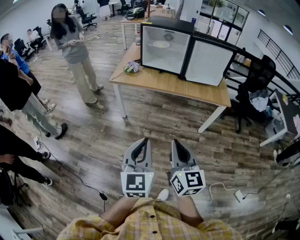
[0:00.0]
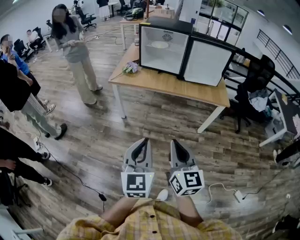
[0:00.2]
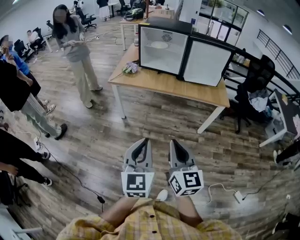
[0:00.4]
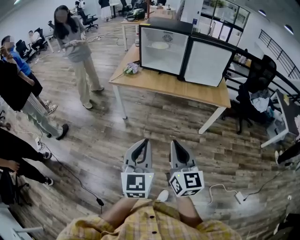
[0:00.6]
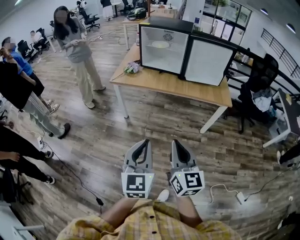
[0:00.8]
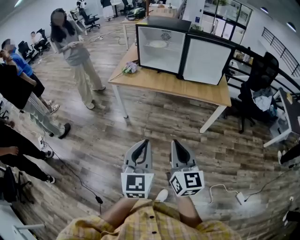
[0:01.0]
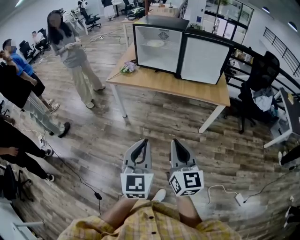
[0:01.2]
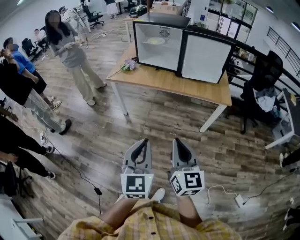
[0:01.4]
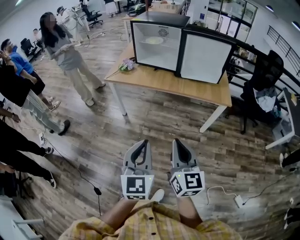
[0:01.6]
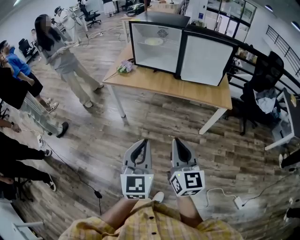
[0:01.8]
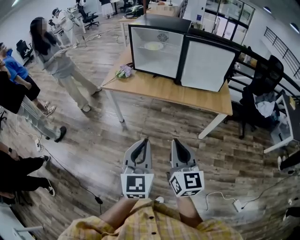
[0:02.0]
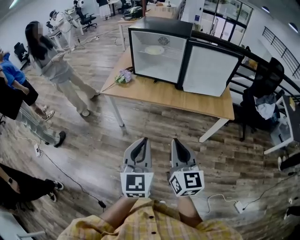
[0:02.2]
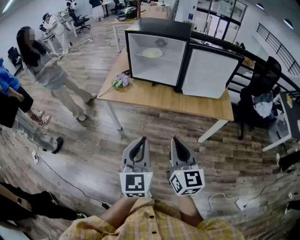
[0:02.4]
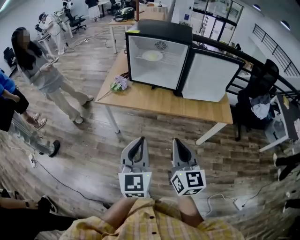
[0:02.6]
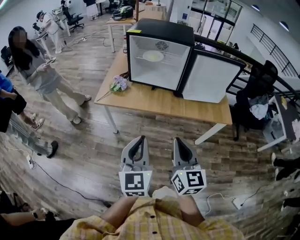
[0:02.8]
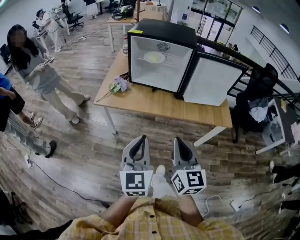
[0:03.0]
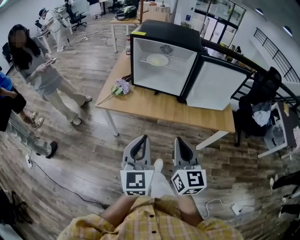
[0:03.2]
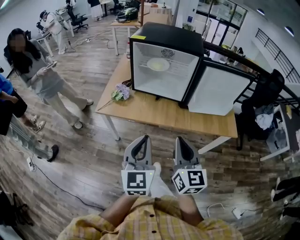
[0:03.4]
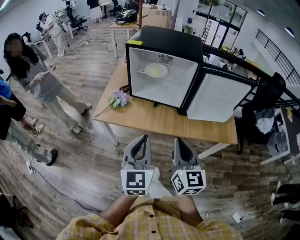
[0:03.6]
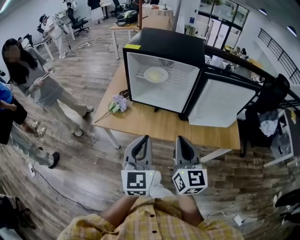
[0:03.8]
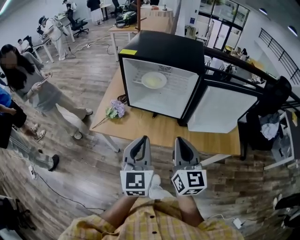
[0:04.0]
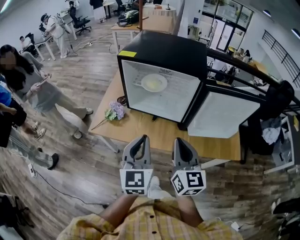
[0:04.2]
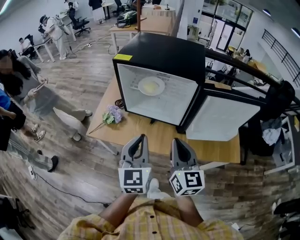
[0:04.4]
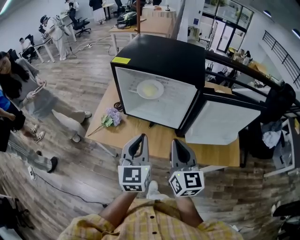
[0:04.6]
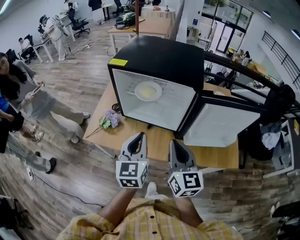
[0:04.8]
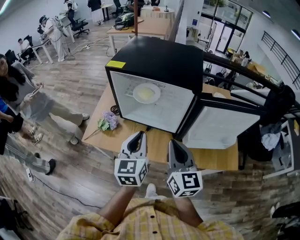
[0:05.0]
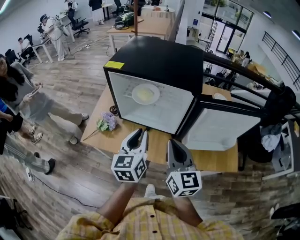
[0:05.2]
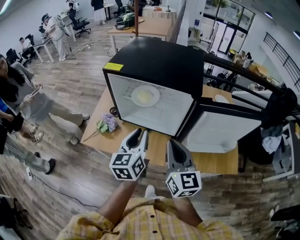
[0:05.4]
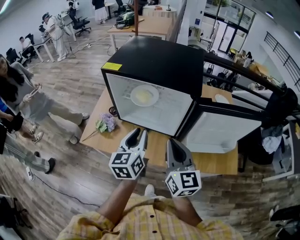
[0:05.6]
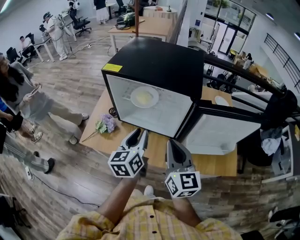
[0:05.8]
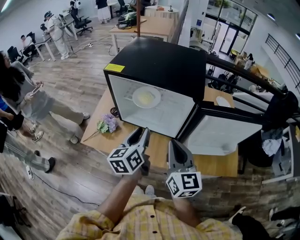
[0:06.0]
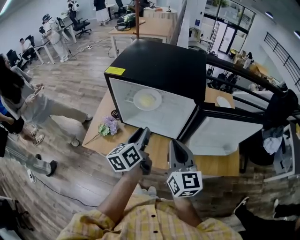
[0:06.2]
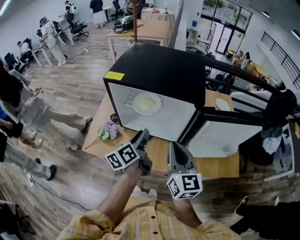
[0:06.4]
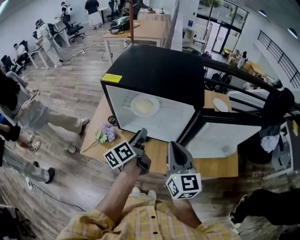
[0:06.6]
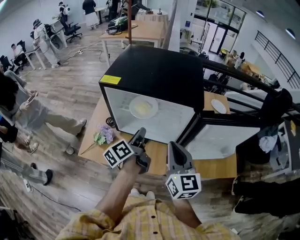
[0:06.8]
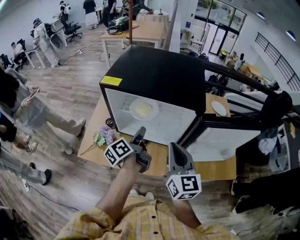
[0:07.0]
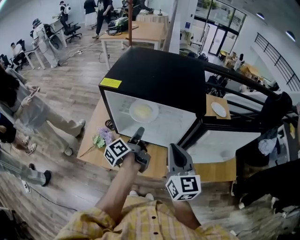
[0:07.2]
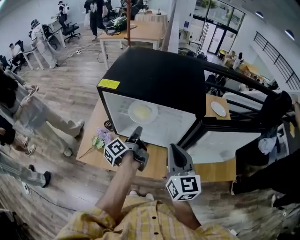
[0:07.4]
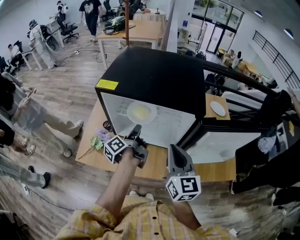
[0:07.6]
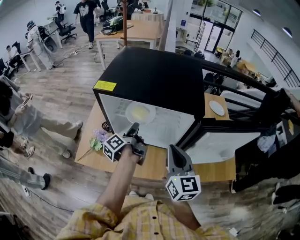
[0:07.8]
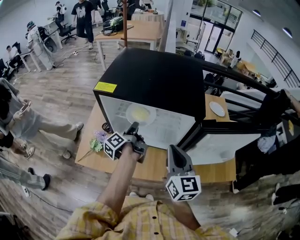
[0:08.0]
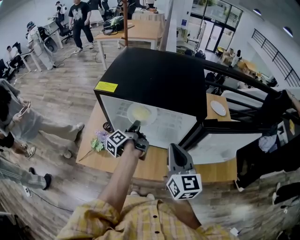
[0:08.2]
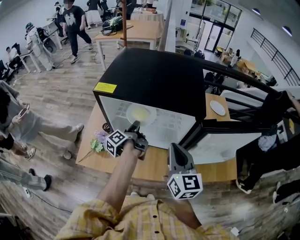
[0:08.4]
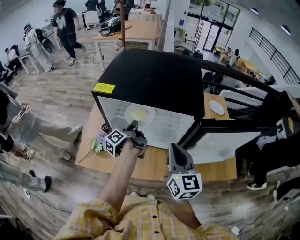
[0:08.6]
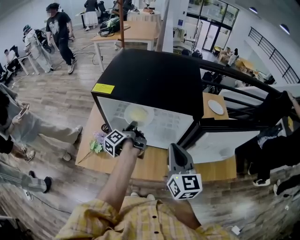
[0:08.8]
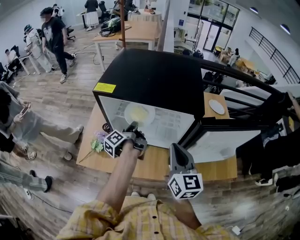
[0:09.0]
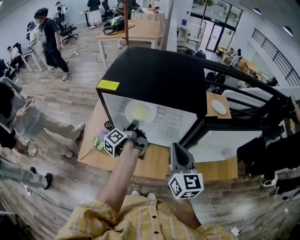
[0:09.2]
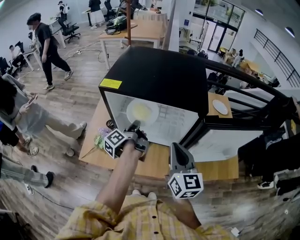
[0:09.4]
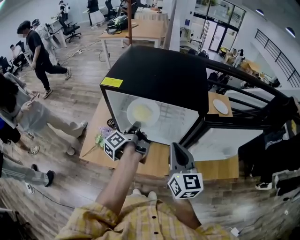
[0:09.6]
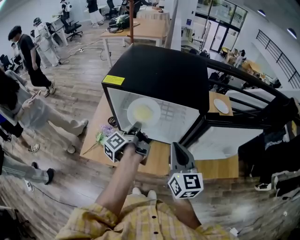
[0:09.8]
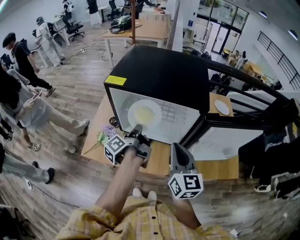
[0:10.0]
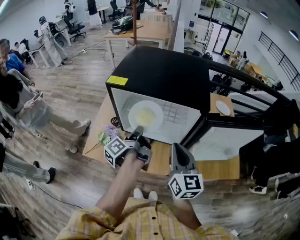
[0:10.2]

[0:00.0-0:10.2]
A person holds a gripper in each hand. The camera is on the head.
0:00.0 to 0:01.4: Both grippers travel together to the right, about 10 cm.
0:01.4 to 0:03.0: Both grippers travel together forward, about 25 cm.
0:03.0 to 0:04.4: The grippers both shift forward by some 25 cm.
0:04.4 to 0:05.8: The right gripper shifts roughly 5 cm forward. The left gripper travels forward by about 10 cm, changes its angle by about 30 degrees, and opens its fingers.
0:05.8 to 0:07.2: The left gripper heads forward and downward, covering roughly 10 cm, and rotates around the line of its fingers by about 50 degrees, counterclockwise from behind. The right gripper changes place by some 5 cm.
0:07.2 to 0:08.8: The left gripper heads forward, covering roughly 10 cm, and closes its fingers.
0:08.8 to 0:10.2: The left gripper shifts some 10 cm backward and upward.

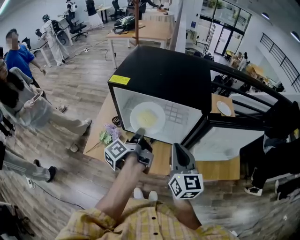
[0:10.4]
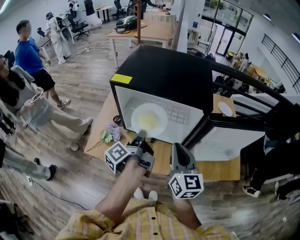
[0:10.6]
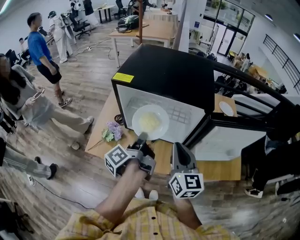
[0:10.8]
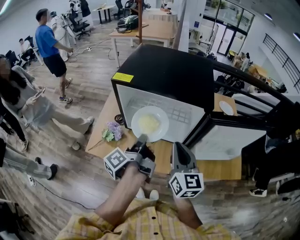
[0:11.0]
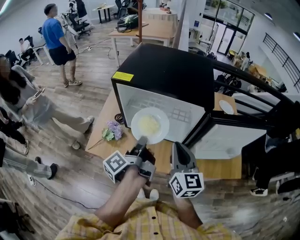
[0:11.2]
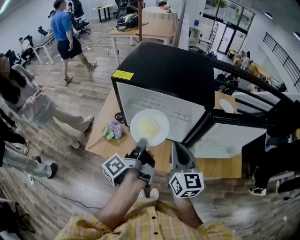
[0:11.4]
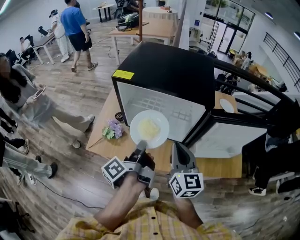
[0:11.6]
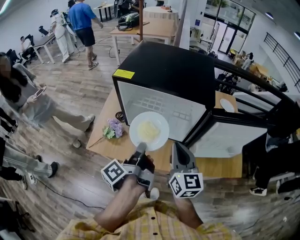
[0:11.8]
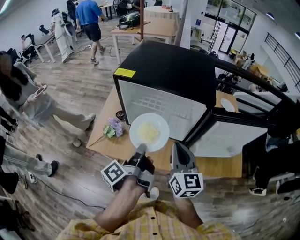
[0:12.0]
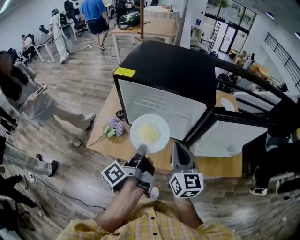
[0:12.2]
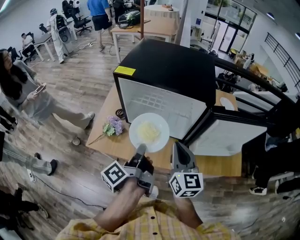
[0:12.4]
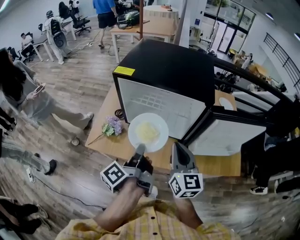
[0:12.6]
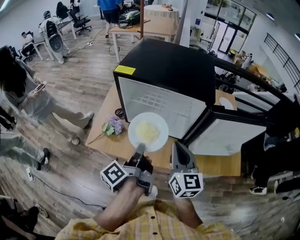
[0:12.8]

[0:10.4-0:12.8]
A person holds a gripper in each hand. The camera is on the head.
0:10.4 to 0:11.6: The left gripper shifts about 10 cm backward.
0:11.6 to 0:12.8: The grippers stay close to where they were, moving slightly.

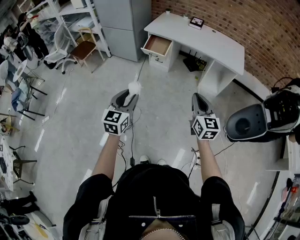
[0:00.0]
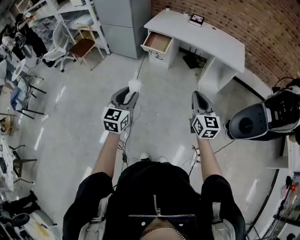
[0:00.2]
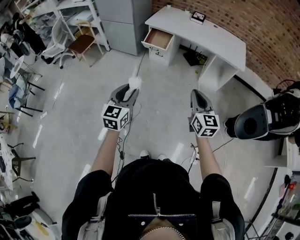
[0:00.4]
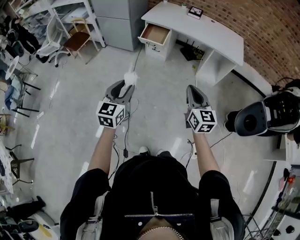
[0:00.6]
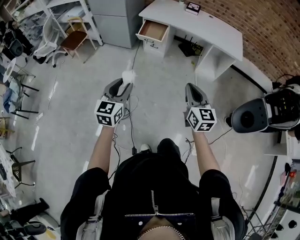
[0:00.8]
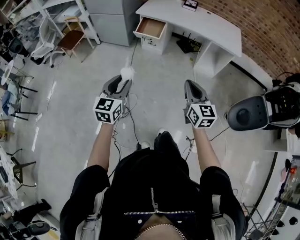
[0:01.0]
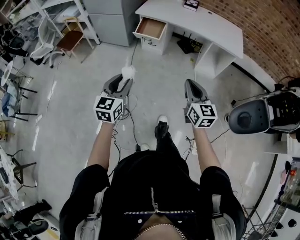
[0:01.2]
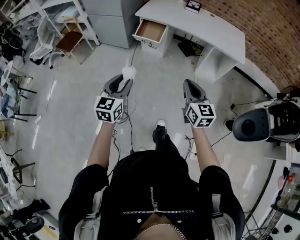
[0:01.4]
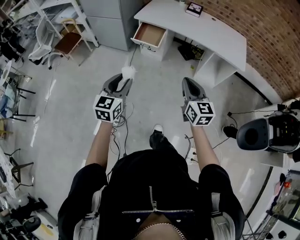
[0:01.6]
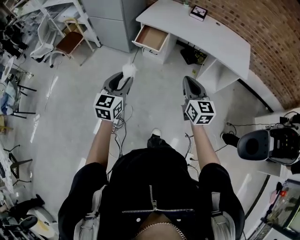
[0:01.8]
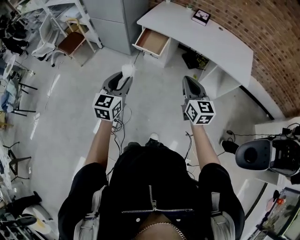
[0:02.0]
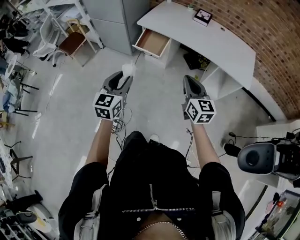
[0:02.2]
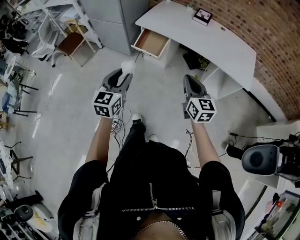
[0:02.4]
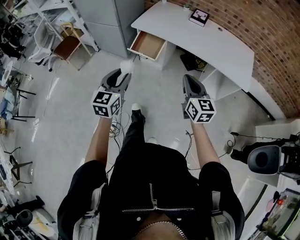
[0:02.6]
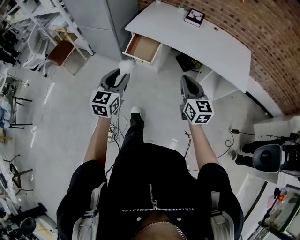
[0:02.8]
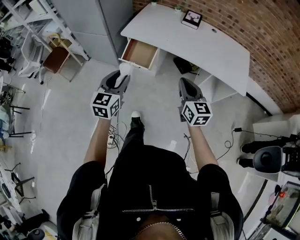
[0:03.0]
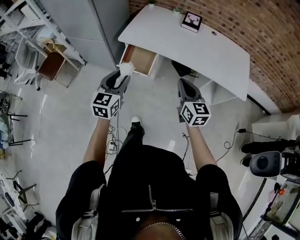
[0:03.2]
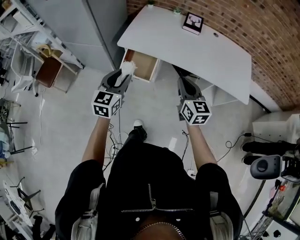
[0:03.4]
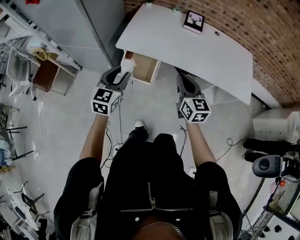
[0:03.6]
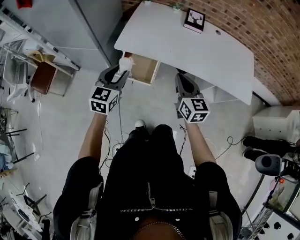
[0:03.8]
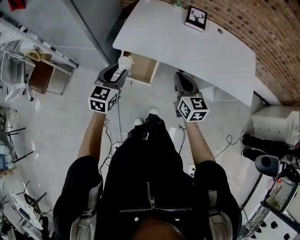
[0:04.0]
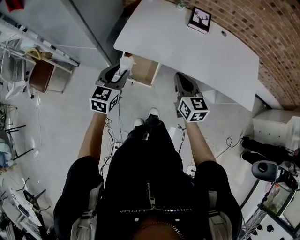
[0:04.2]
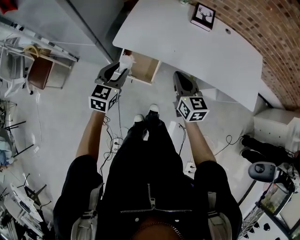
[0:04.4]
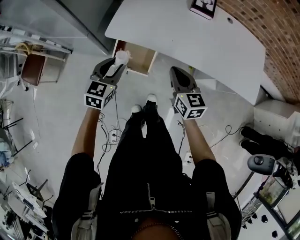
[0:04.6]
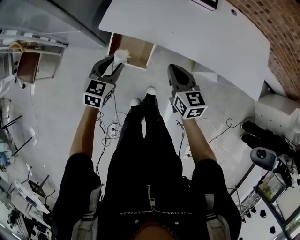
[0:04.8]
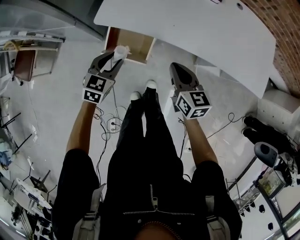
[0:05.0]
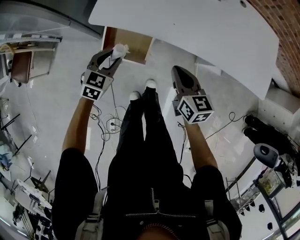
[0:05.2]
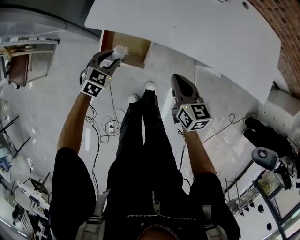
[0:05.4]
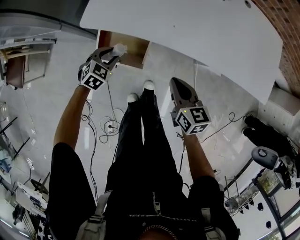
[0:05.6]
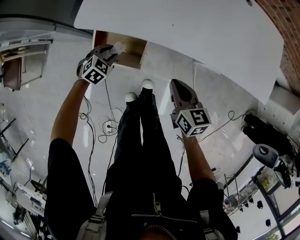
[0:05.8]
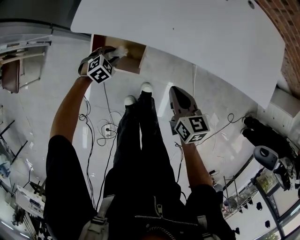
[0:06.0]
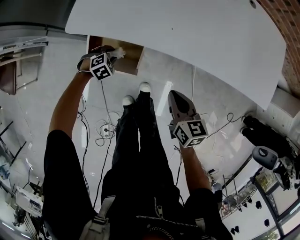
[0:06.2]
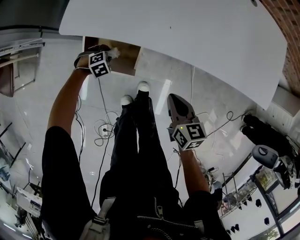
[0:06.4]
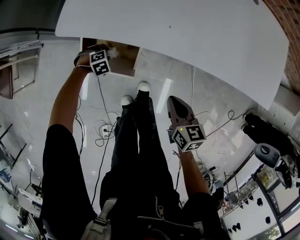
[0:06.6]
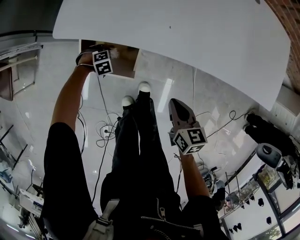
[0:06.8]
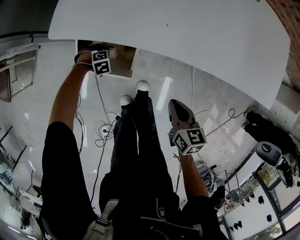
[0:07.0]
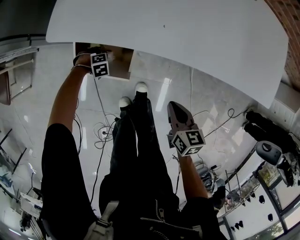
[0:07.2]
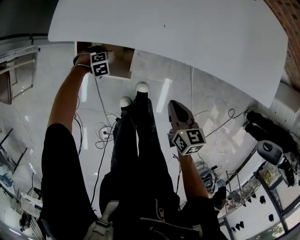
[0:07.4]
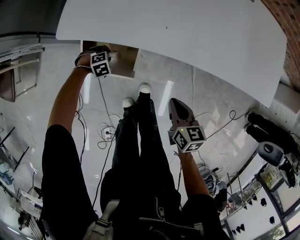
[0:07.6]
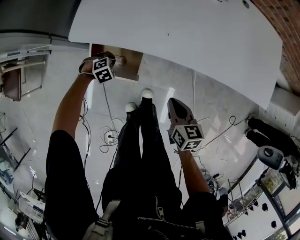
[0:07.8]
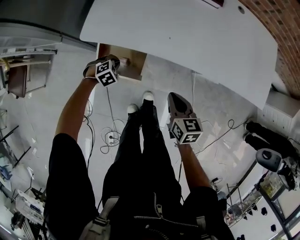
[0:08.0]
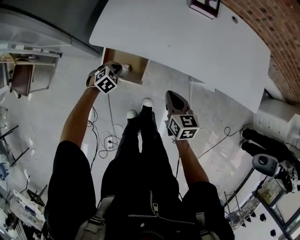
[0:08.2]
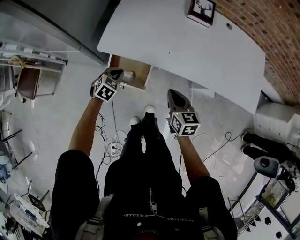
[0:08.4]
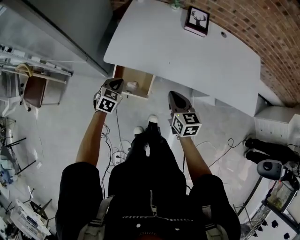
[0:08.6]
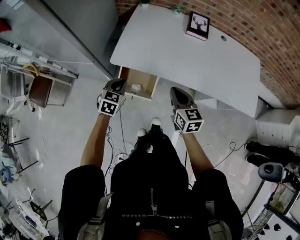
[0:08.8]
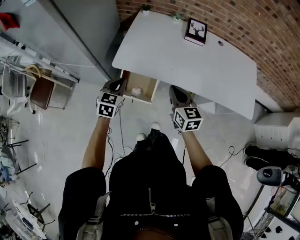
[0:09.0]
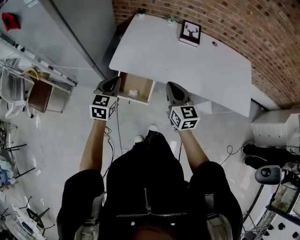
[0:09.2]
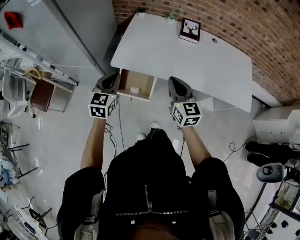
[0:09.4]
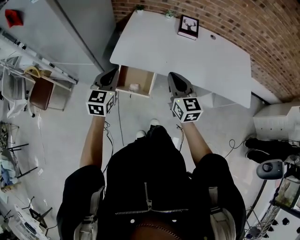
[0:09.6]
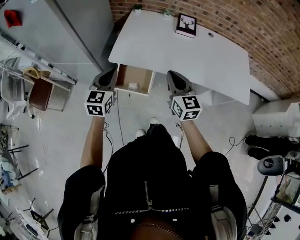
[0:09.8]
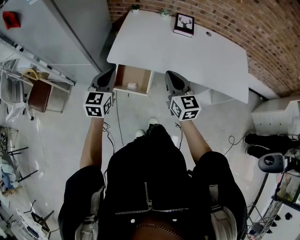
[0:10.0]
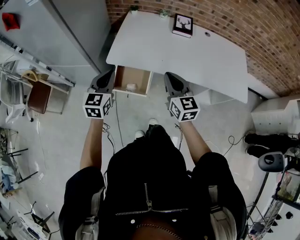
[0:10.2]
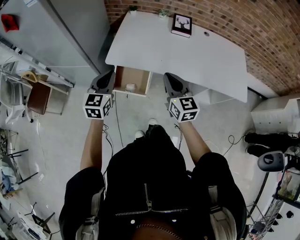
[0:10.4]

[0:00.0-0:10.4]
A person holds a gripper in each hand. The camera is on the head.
0:00.0 to 0:01.4: The right gripper shifts about 10 cm forward and to the left; the left gripper is displaced forward by roughly 10 cm.
0:01.4 to 0:03.0: Both grippers move forward, about 35 cm.
0:03.0 to 0:04.4: Both grippers move forward, approximately 30 cm.
0:04.4 to 0:06.0: The left gripper shifts about 35 cm downward, and angles its fingers downward, by about 40 degrees; the right gripper shifts about 20 cm downward, and changes its angle by some 20 degrees.
0:06.0 to 0:07.4: The right gripper heads downward, covering about 5 cm; the left gripper heads downward, covering some 15 cm, and turns by roughly 30 degrees.
0:07.4 to 0:09.0: The right gripper moves upward, some 25 cm, and rotates some 30 degrees, while the left gripper shifts some 50 cm upward, tilts its fingers some 60 degrees upward, and closes up.
0:09.0 to 0:10.4: The right gripper goes some 5 cm upward; the left gripper travels upward and backward by roughly 10 cm.
